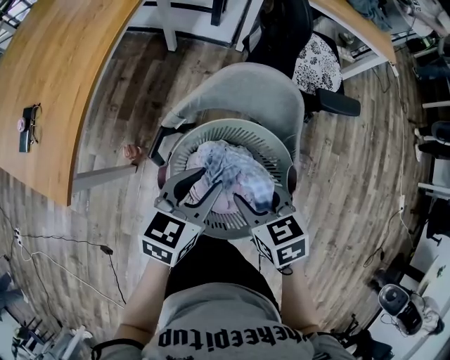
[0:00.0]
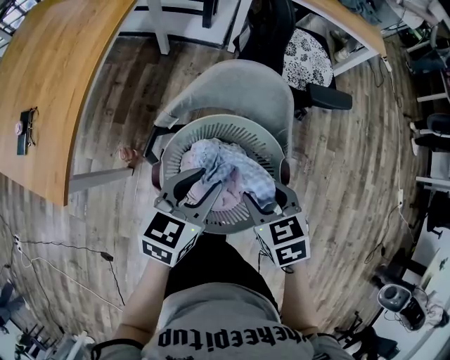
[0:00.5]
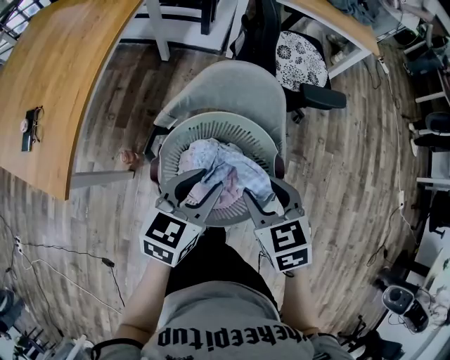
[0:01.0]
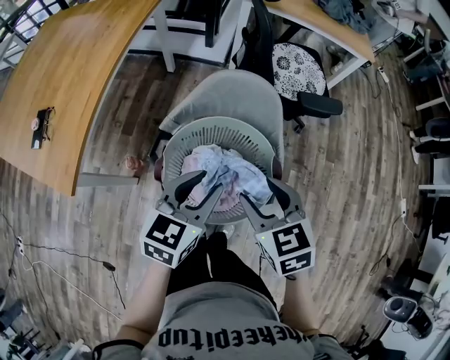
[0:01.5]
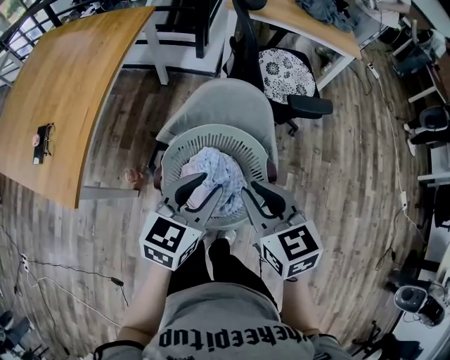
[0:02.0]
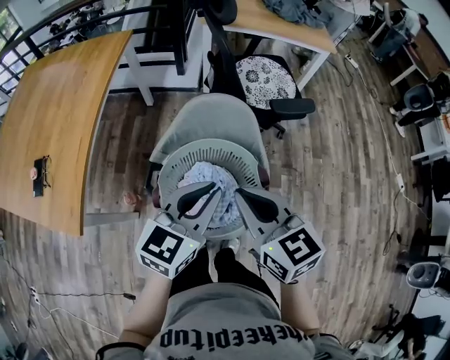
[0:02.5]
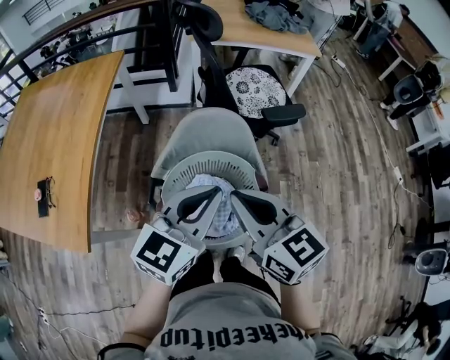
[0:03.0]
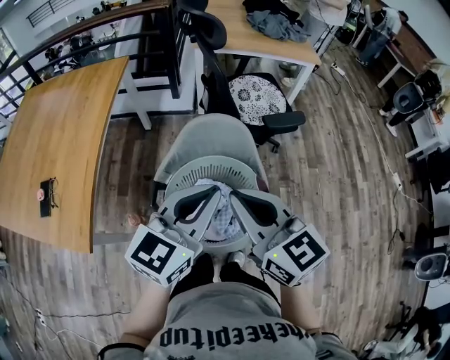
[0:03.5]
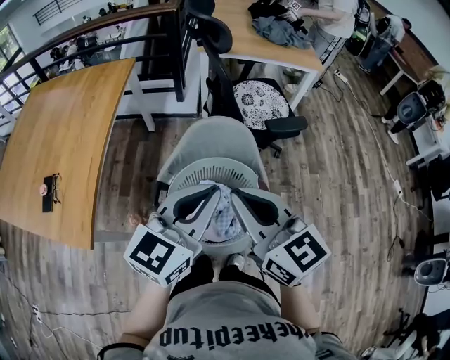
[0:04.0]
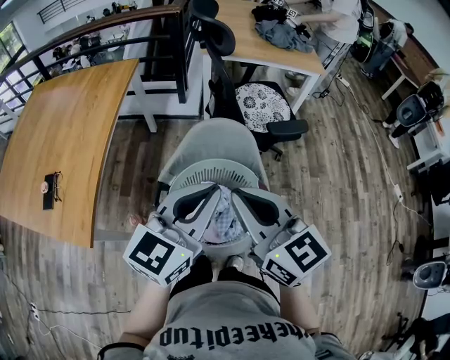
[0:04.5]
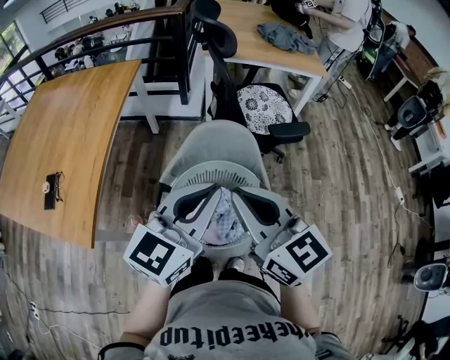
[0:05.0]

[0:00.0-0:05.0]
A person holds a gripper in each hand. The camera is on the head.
0:00.0 to 0:02.5: The right gripper is displaced upward by roughly 20 cm, changes its angle by approximately 30 degrees, and closes its fingers; the left gripper travels upward and to the right by roughly 15 cm, turns by approximately 20 degrees, and closes its fingers.
0:02.5 to 0:05.0: The grippers both shift upward by about 10 cm.

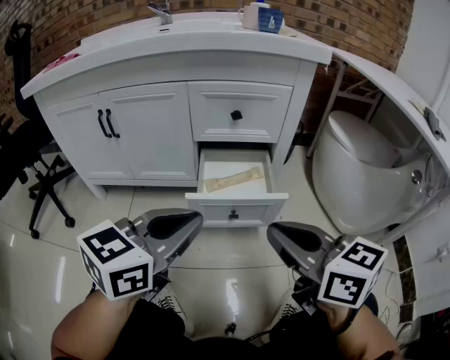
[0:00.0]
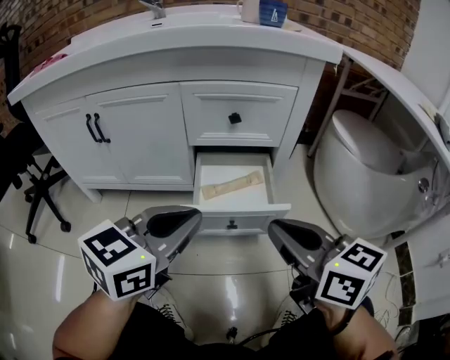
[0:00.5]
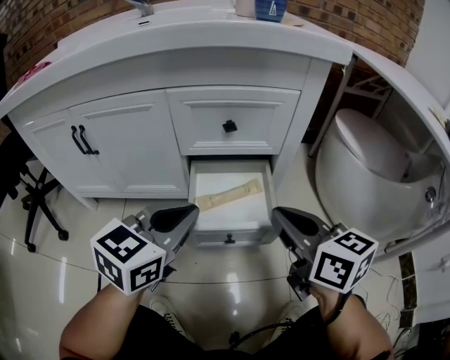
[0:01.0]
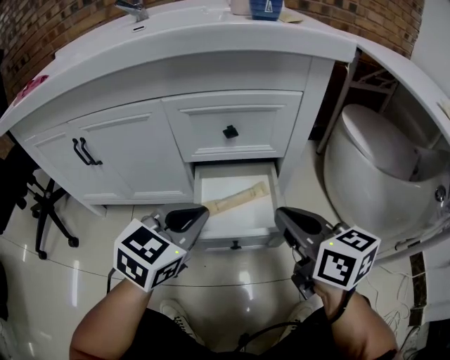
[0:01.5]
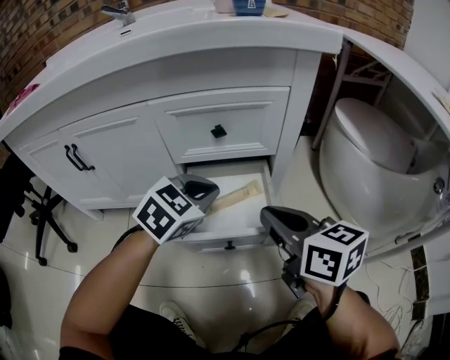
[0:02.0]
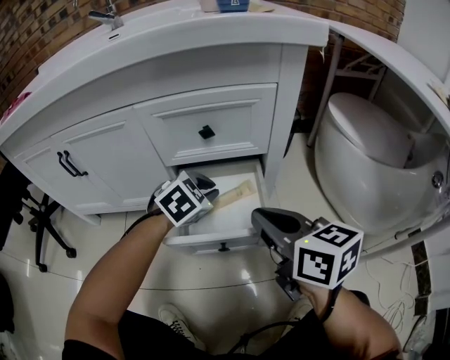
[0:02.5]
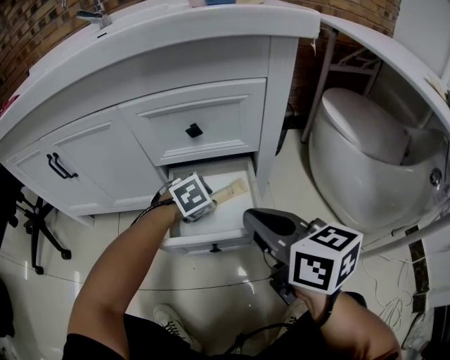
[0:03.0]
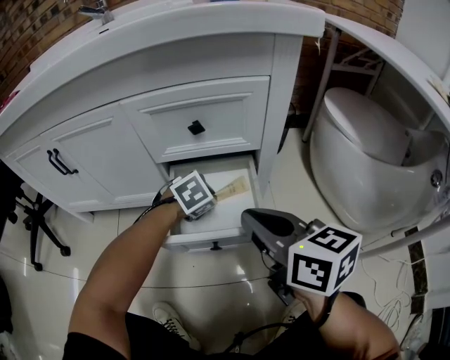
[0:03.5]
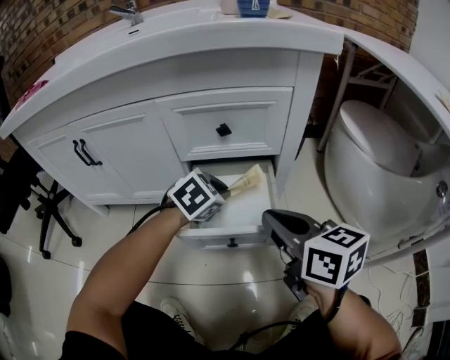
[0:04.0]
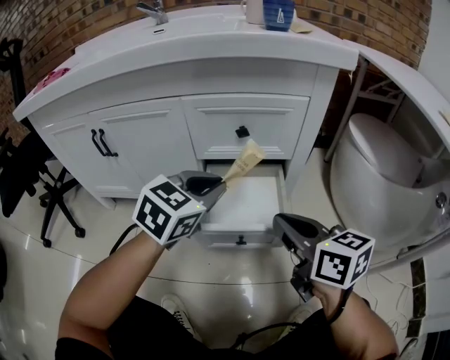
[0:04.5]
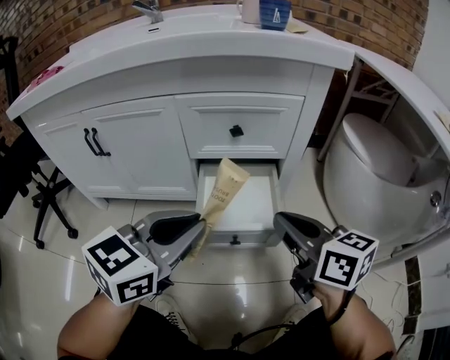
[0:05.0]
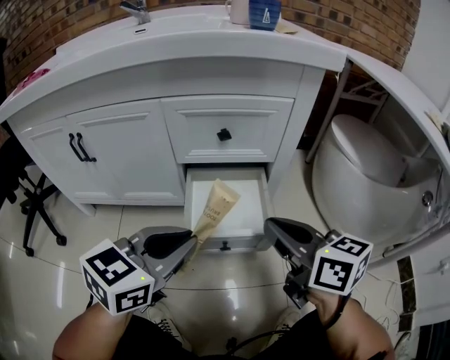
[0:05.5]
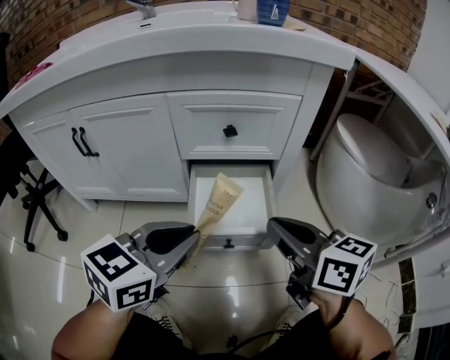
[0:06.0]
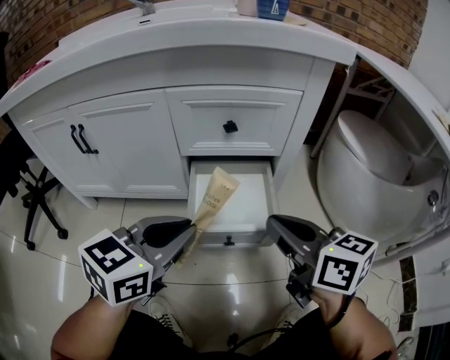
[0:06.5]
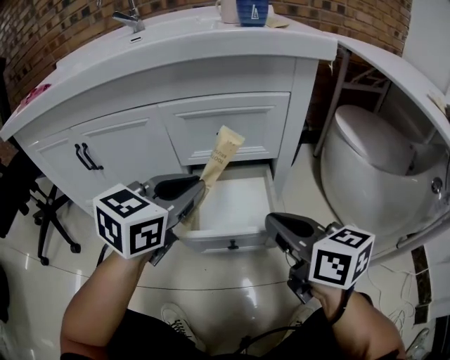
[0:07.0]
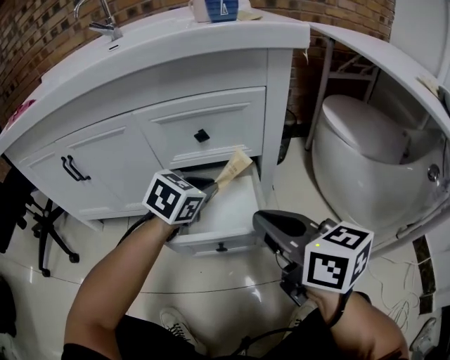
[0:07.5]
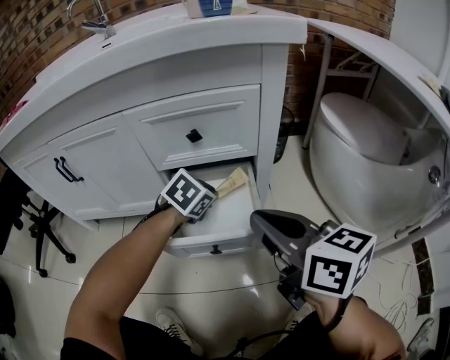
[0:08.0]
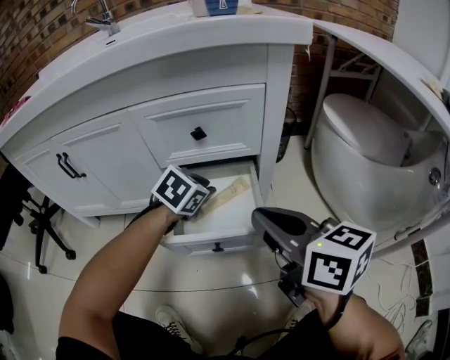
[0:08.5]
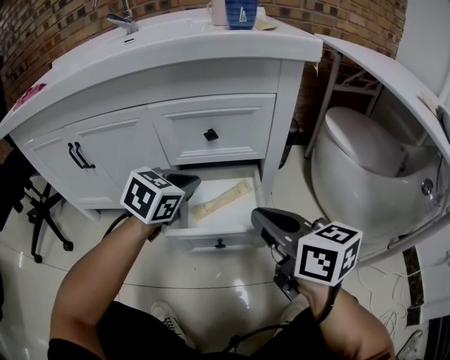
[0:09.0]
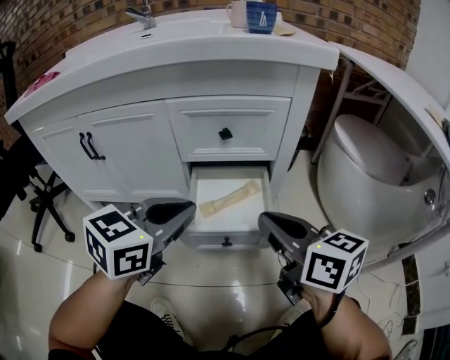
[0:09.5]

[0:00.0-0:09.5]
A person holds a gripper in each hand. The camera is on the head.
0:00.0 to 0:02.0: The left gripper moves forward and downward, some 25 cm, and changes its angle by some 30 degrees. Meanwhile the right gripper is displaced forward by some 15 cm.
0:02.0 to 0:04.0: The left gripper goes roughly 5 cm downward, and opens and closes again.
0:04.0 to 0:05.5: The left gripper is displaced backward and upward by approximately 20 cm, and rotates about 40 degrees.
0:05.5 to 0:07.5: The left gripper goes roughly 20 cm forward and downward, and swivels about 20 degrees.
0:07.5 to 0:09.5: The left gripper shifts about 20 cm backward, upward and to the left, and rotates roughly 20 degrees.

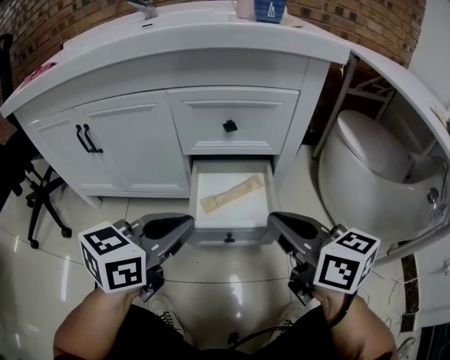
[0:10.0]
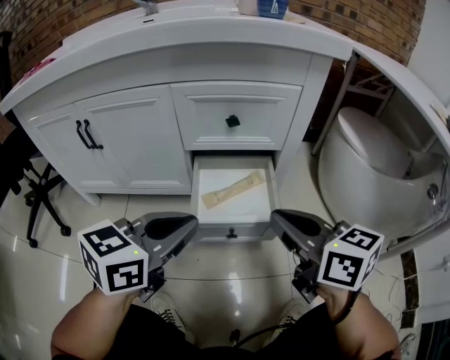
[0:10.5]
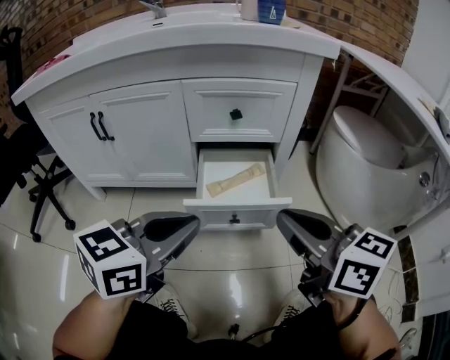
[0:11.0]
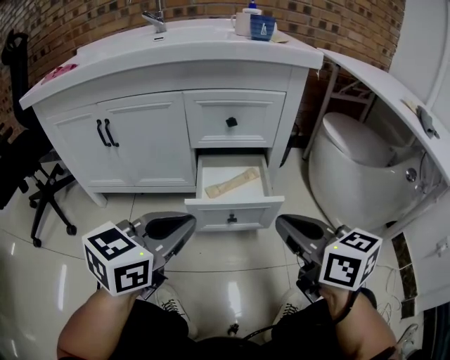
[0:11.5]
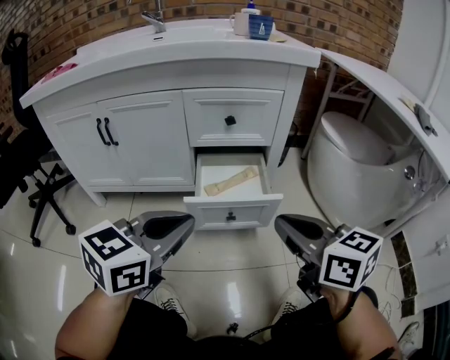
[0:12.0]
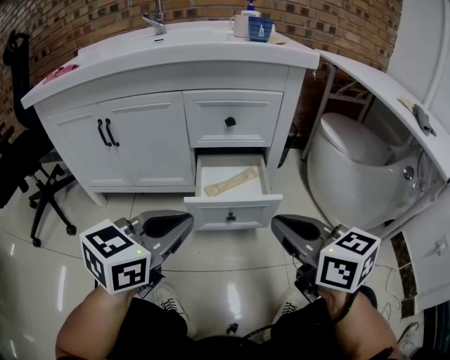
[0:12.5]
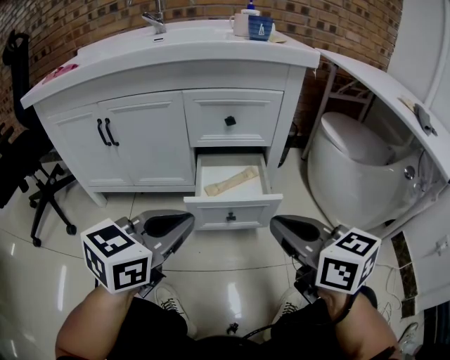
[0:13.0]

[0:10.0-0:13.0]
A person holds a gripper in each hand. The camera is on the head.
0:10.0 to 0:11.5: The grippers both shift backward by approximately 10 cm.
0:11.5 to 0:13.0: There are only small adjustments of the grippers.

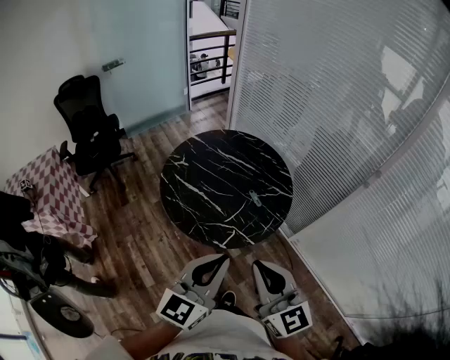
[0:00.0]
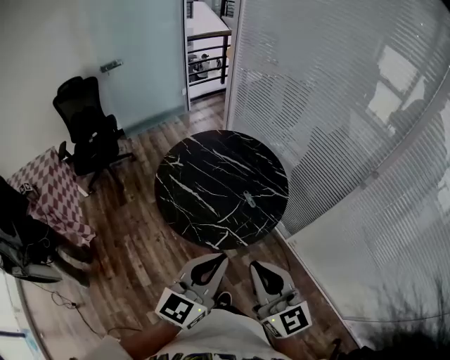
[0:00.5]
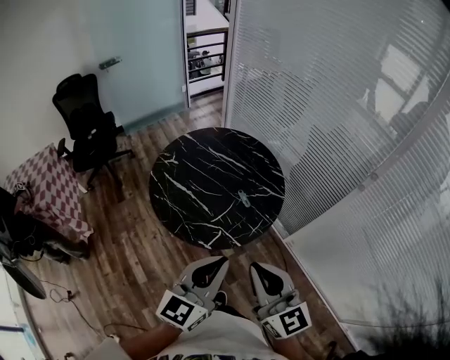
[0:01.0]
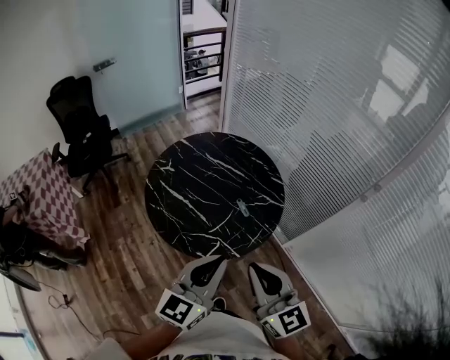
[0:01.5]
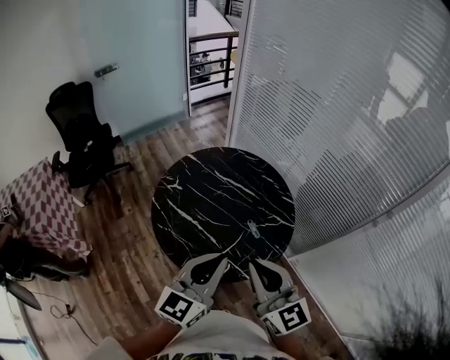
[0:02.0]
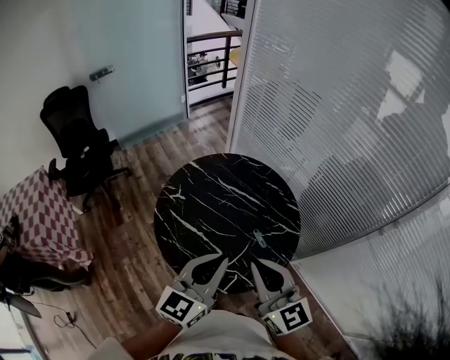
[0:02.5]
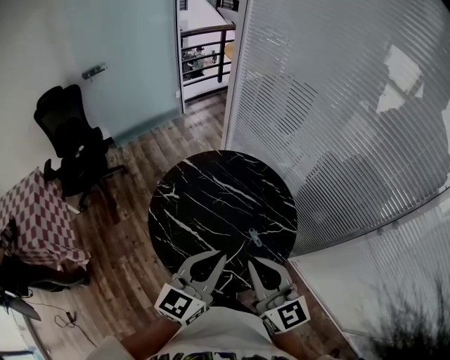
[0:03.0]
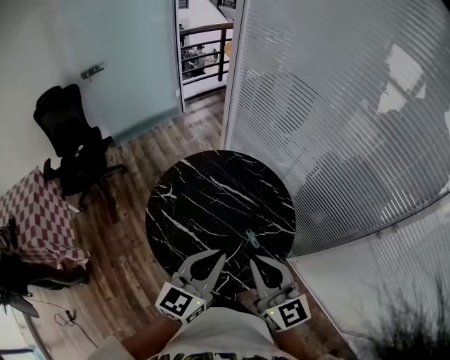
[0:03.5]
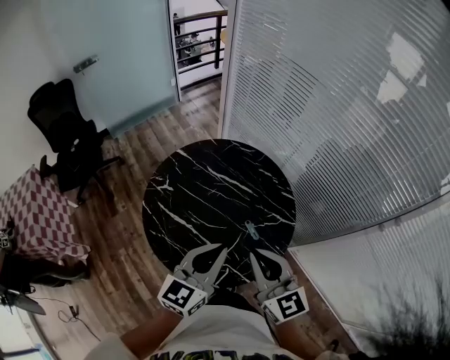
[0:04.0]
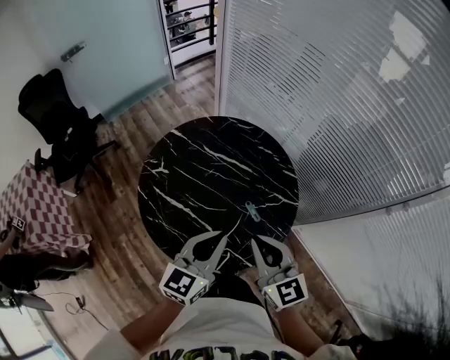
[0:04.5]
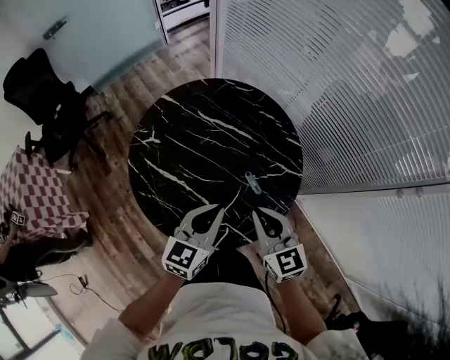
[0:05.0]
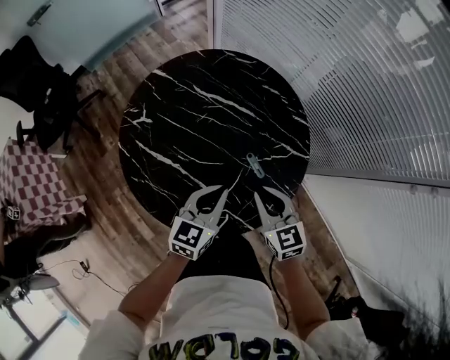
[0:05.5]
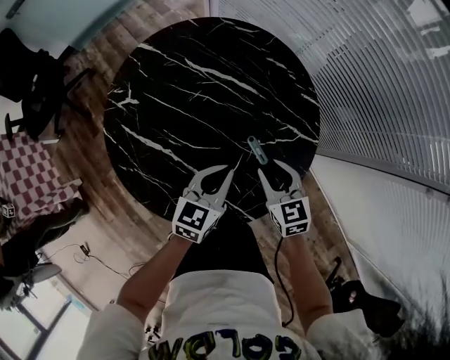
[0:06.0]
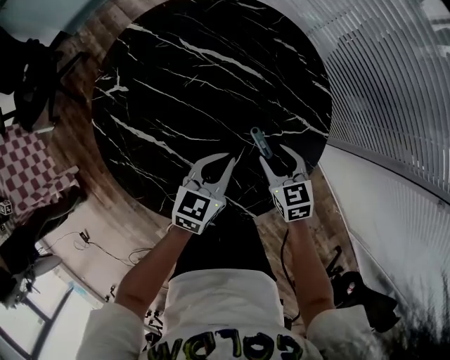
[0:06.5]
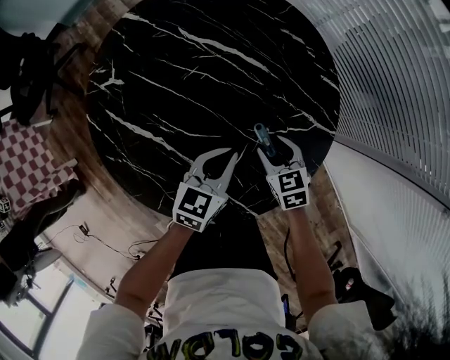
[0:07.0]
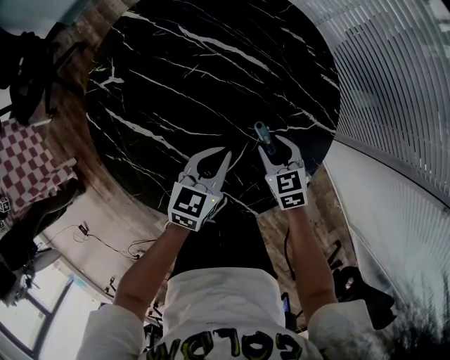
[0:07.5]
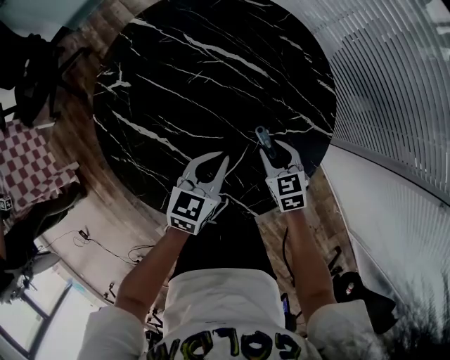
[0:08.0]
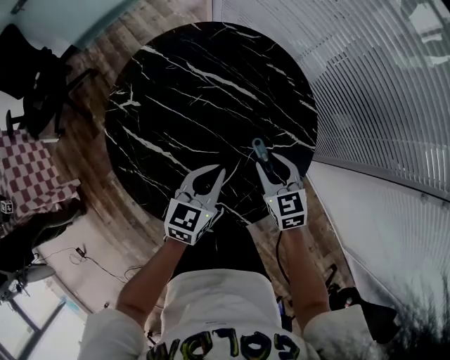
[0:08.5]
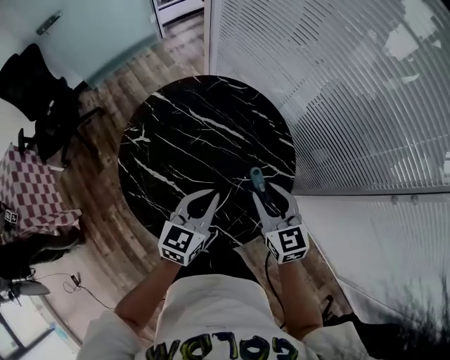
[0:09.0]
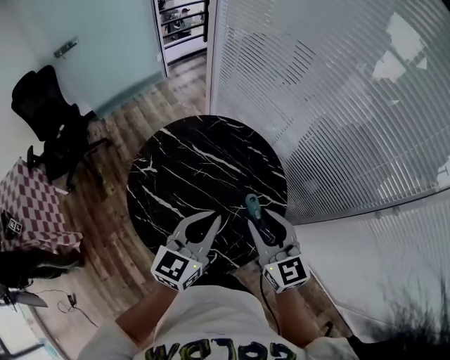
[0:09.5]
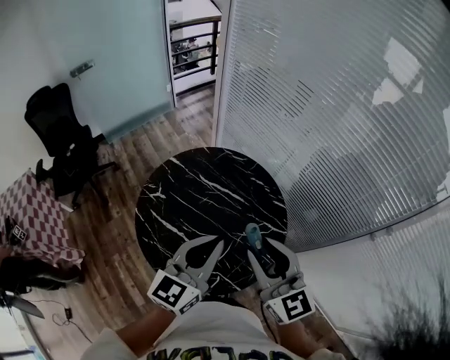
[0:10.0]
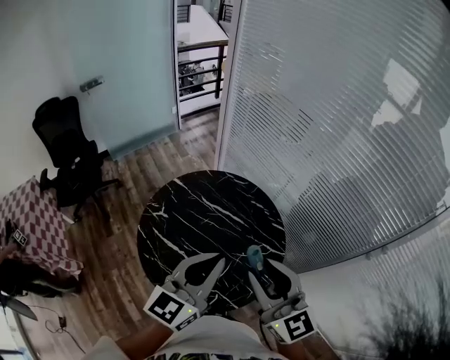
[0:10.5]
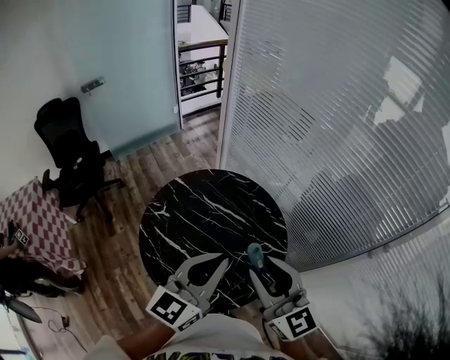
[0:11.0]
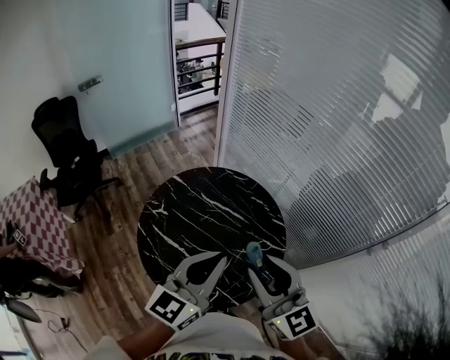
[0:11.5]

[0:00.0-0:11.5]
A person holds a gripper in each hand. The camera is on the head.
0:00.0 to 0:02.0: The grippers both shift forward by about 20 cm.
0:02.0 to 0:04.0: The two grippers go approximately 10 cm forward and downward.
0:04.0 to 0:06.0: The two grippers go some 30 cm downward. The left gripper swivels about 20 degrees. The right gripper rotates about 30 degrees, and opens its fingers.
0:06.0 to 0:07.5: The right gripper heads downward, covering some 15 cm; the left gripper travels downward by approximately 10 cm.
0:07.5 to 0:09.5: The two grippers go about 40 cm upward. The left gripper rotates some 30 degrees; the right gripper tilts its fingers some 40 degrees upward.
0:09.5 to 0:11.5: Both grippers move upward, about 15 cm.
